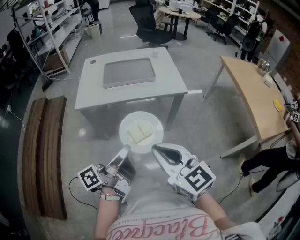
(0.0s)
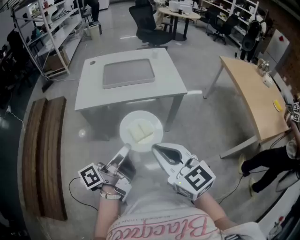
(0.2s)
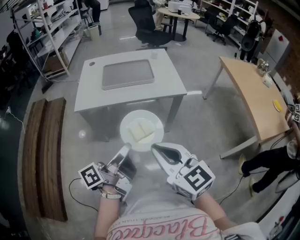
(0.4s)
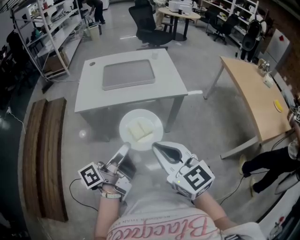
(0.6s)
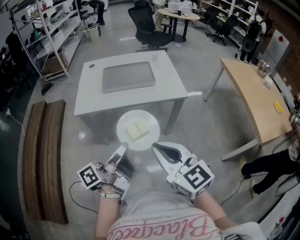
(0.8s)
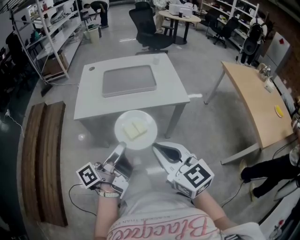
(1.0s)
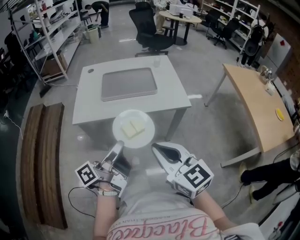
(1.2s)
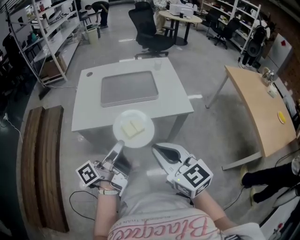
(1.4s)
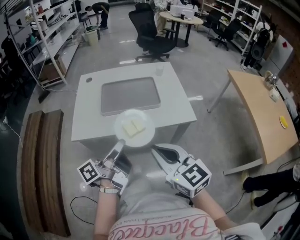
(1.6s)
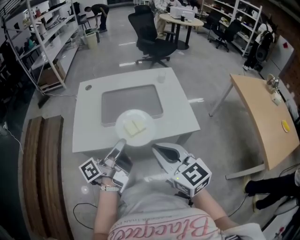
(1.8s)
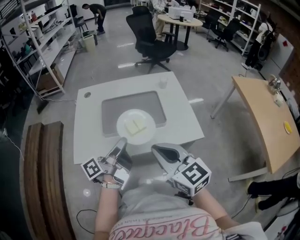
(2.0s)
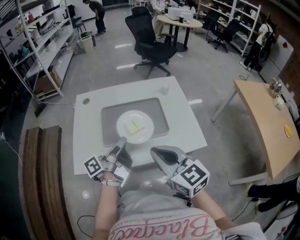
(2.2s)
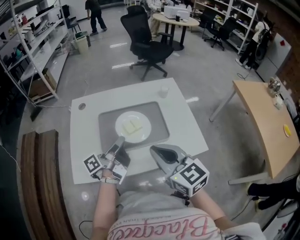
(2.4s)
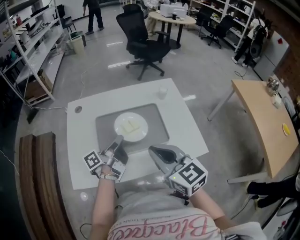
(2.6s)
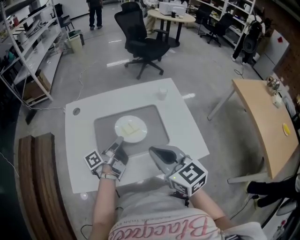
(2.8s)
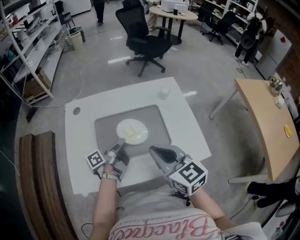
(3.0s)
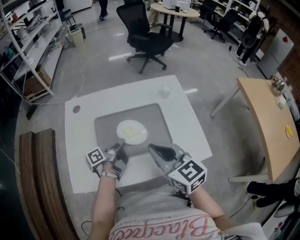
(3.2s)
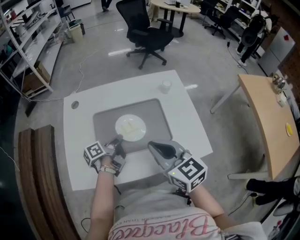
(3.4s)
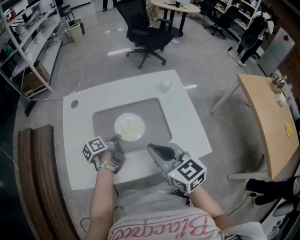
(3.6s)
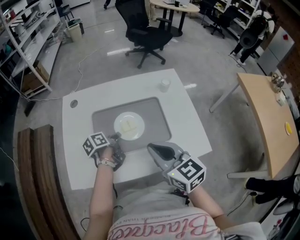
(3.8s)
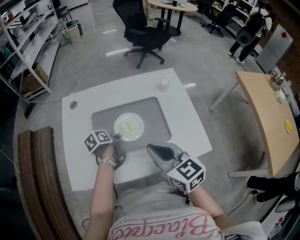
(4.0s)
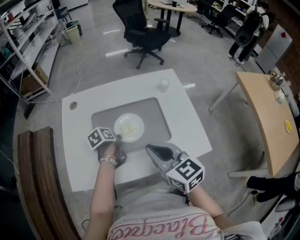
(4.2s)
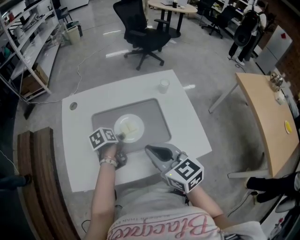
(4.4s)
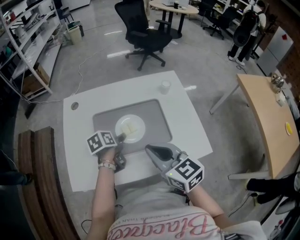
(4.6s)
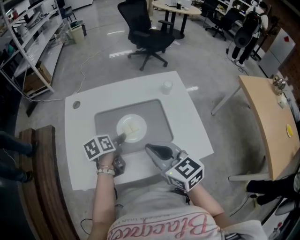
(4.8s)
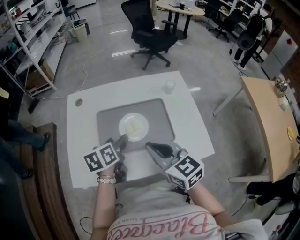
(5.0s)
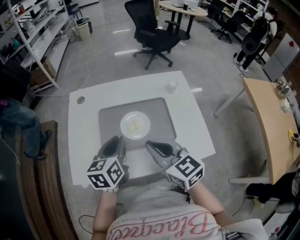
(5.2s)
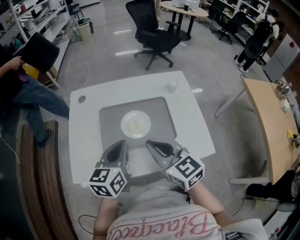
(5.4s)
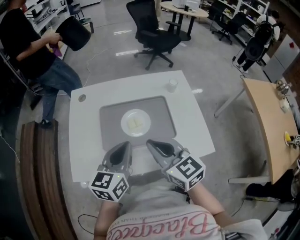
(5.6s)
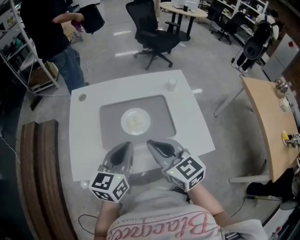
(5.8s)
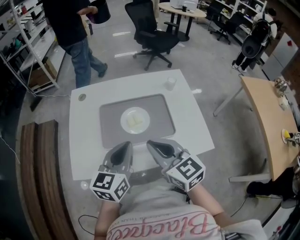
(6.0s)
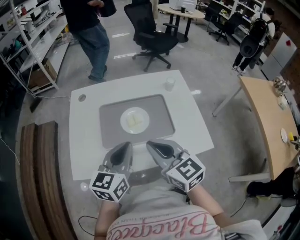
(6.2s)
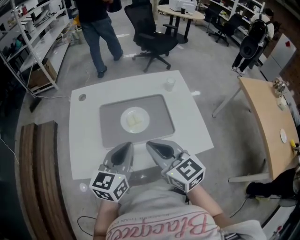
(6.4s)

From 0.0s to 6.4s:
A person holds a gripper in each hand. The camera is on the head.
From 0.0s to 1.6s: The two grippers go roughly 15 cm forward.
From 1.6s to 3.2s: The left gripper is displaced forward and downward by some 30 cm, and changes its angle by approximately 30 degrees; the right gripper moves forward, some 25 cm.
From 3.2s to 4.8s: The left gripper angles its fingers downward, by about 30 degrees, and opens its fingers.
From 4.8s to 6.4s: The left gripper goes some 20 cm upward and backward, tips its fingers upward by about 30 degrees, and closes.

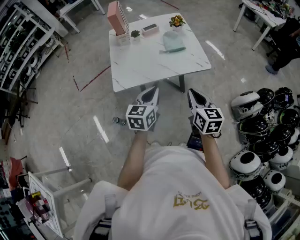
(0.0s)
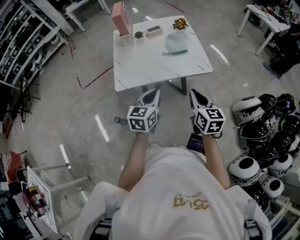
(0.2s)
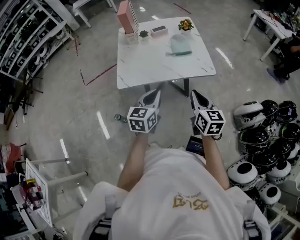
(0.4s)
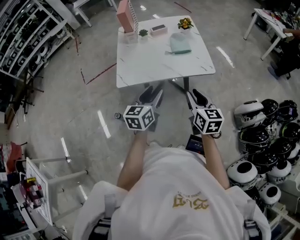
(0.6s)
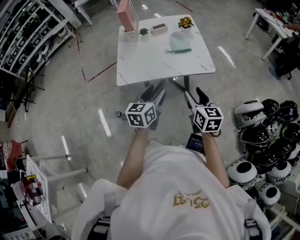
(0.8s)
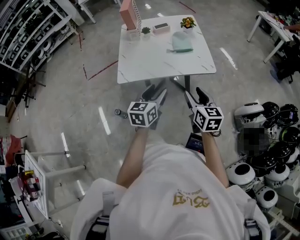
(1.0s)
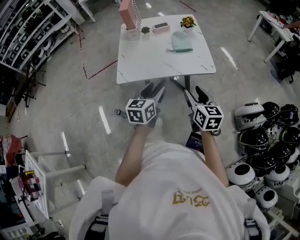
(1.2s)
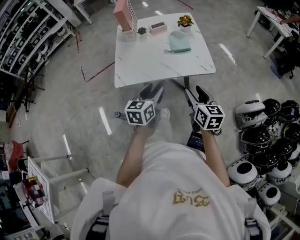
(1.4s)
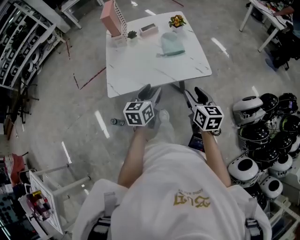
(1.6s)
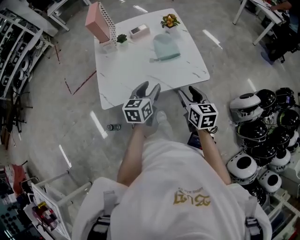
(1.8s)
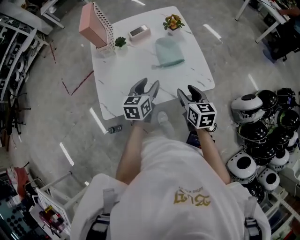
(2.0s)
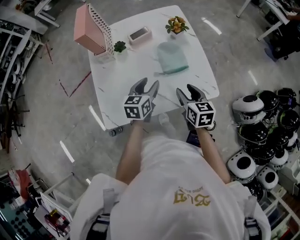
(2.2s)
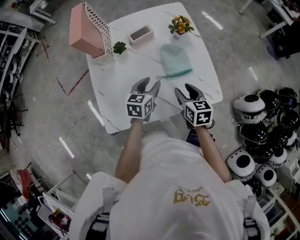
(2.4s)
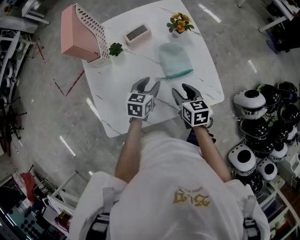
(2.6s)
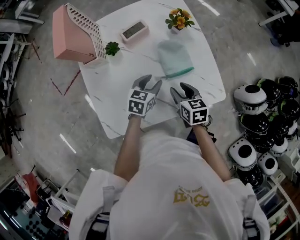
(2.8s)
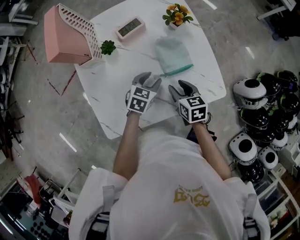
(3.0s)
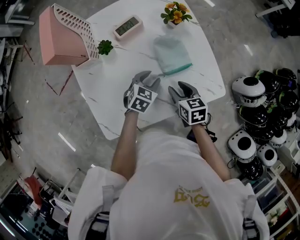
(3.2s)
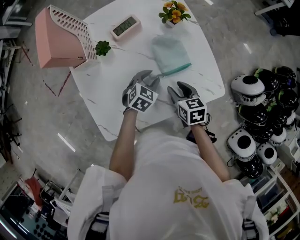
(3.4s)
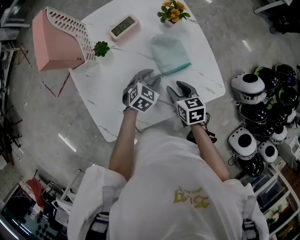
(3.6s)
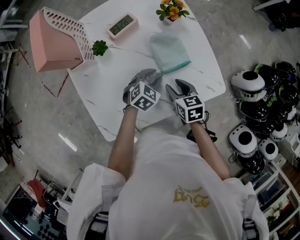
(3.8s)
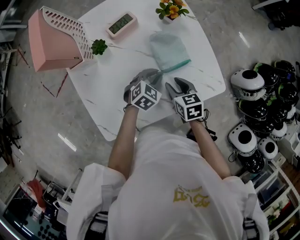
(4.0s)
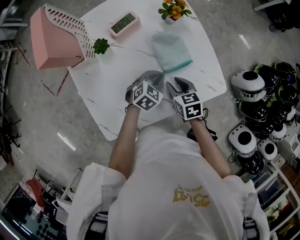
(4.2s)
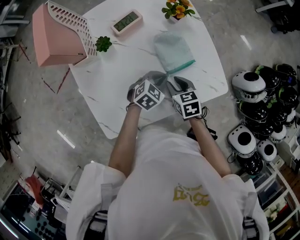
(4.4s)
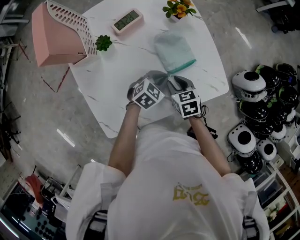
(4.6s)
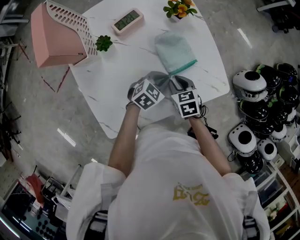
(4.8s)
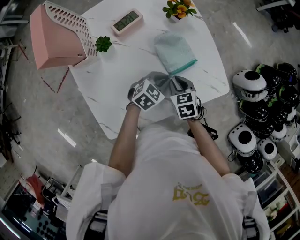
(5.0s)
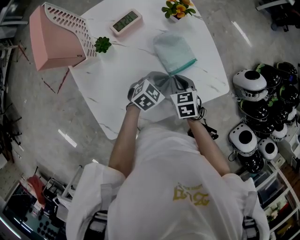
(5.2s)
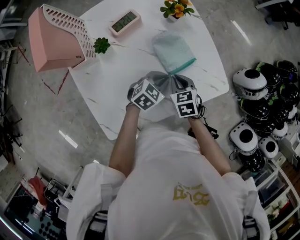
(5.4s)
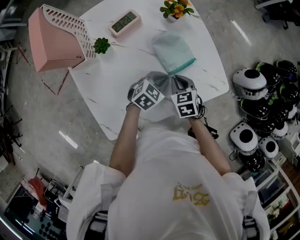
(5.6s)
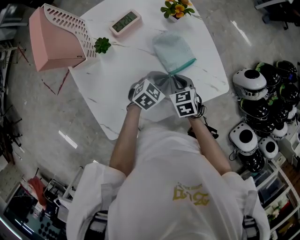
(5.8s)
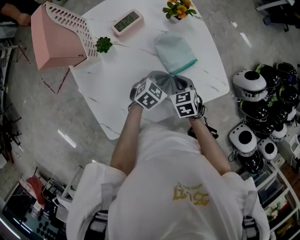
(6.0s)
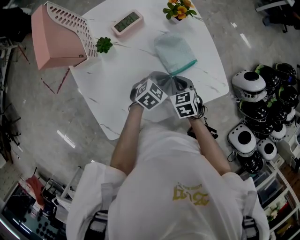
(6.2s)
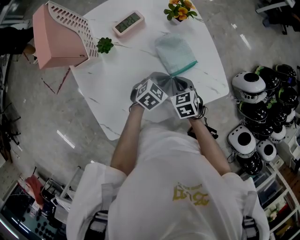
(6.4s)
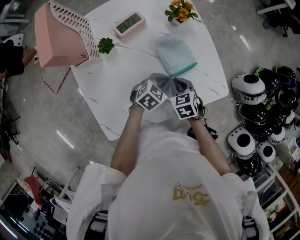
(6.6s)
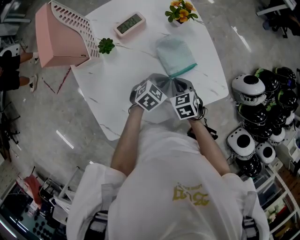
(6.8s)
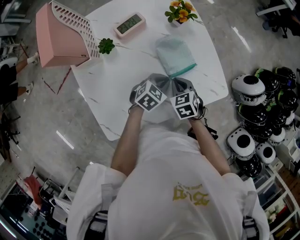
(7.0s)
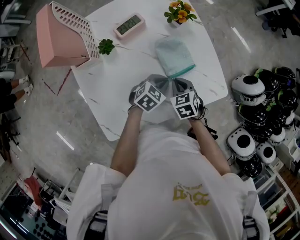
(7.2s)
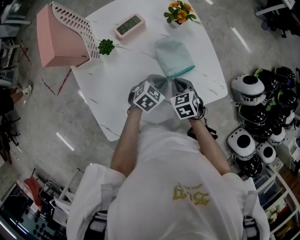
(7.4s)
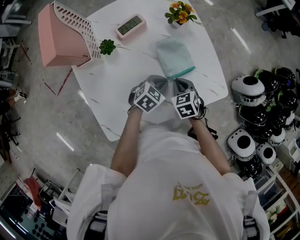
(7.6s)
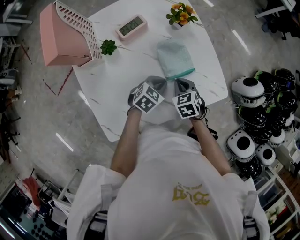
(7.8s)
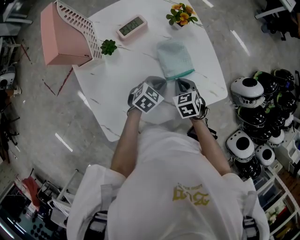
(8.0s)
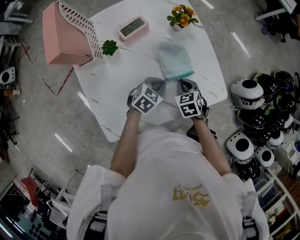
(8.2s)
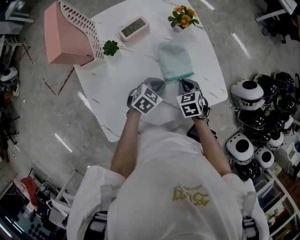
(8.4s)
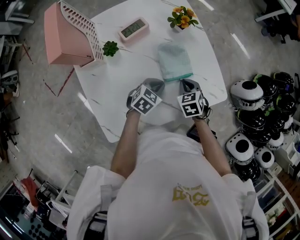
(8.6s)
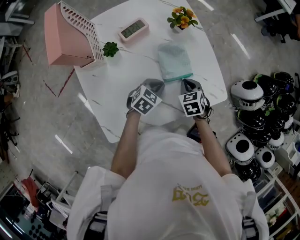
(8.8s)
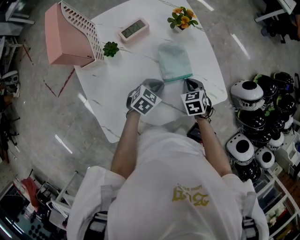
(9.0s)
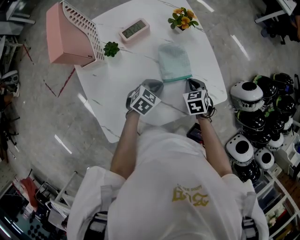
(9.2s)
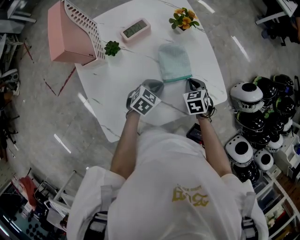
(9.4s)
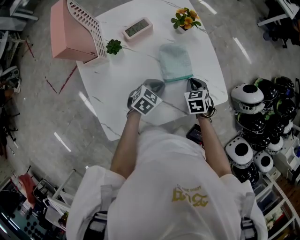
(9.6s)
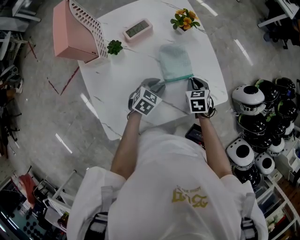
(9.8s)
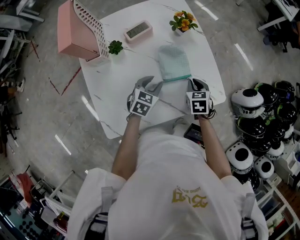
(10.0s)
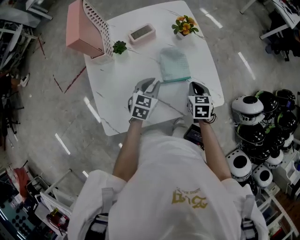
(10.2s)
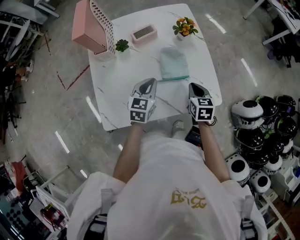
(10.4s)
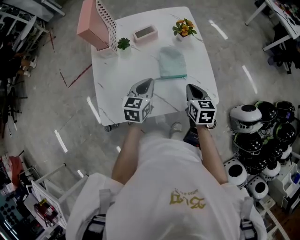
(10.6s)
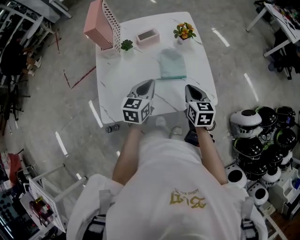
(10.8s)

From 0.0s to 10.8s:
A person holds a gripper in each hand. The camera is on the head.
From 0.0s to 1.6s: Both grippers travel together forward, about 10 cm. The left gripper opens. The right gripper opens.
From 1.6s to 3.0s: Both grippers travel together forward and downward, approximately 35 cm. The right gripper turns by some 20 degrees; the left gripper turns by about 40 degrees.
From 3.0s to 4.6s: The left gripper ends up roughly 5 cm from where it was, rotates roughly 30 degrees, and closes.
From 4.6s to 6.2s: The right gripper closes its fingers.
From 6.2s to 7.8s: The grippers stay close to where they were, moving slightly.
From 7.8s to 9.2s: The right gripper ends up roughly 5 cm from where it was.
From 9.2s to 10.8s: The two grippers go roughly 15 cm upward. The left gripper rotates some 50 degrees, and opens, then closes once more; the right gripper swivels roughly 30 degrees.

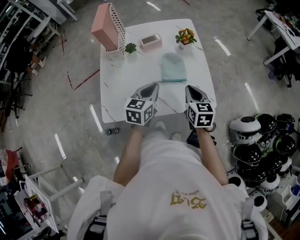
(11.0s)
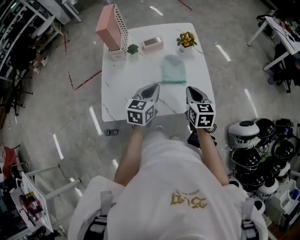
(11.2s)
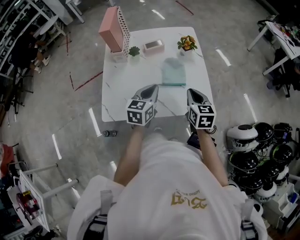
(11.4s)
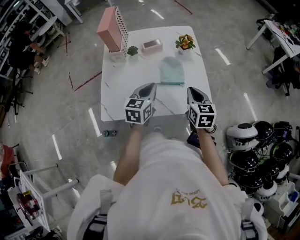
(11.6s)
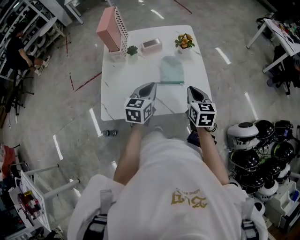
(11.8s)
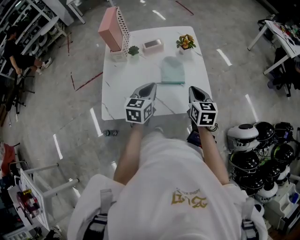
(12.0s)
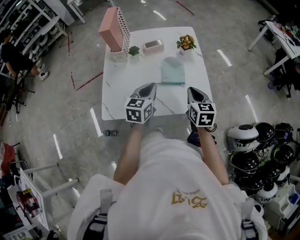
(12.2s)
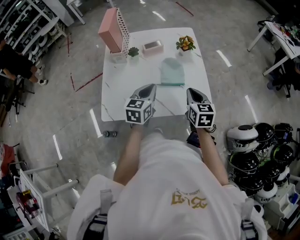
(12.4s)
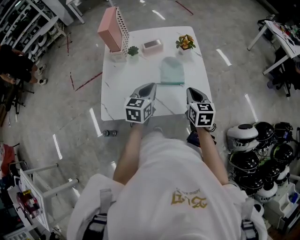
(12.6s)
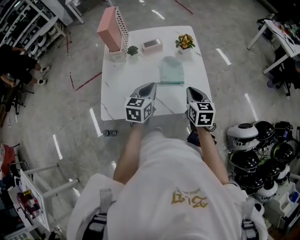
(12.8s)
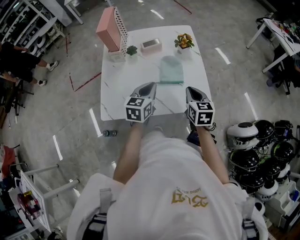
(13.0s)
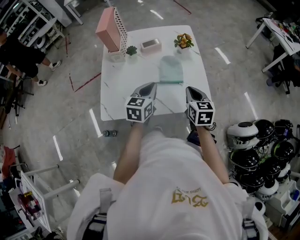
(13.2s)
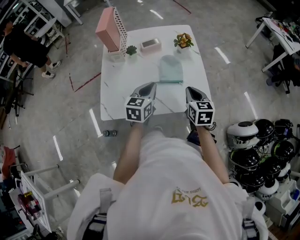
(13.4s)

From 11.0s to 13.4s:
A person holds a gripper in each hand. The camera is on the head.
From 11.0s to 12.2s: The grippers stay close to where they were, moving slightly.
From 12.2s to 13.4s: Neither gripper changes place.

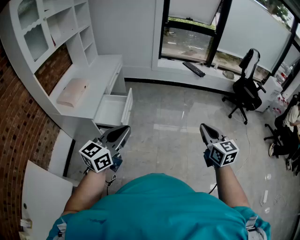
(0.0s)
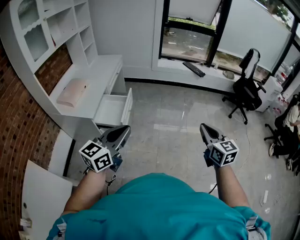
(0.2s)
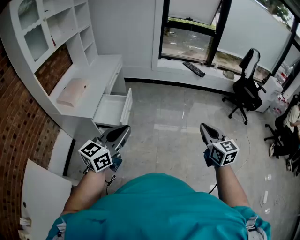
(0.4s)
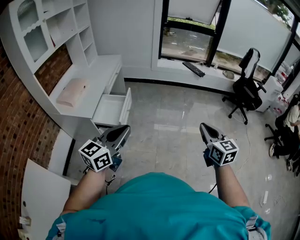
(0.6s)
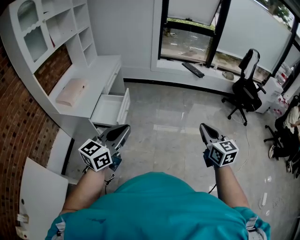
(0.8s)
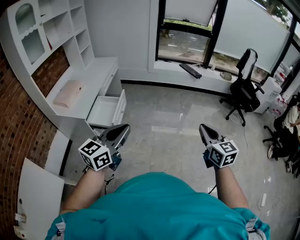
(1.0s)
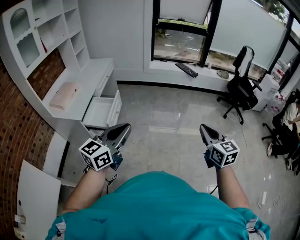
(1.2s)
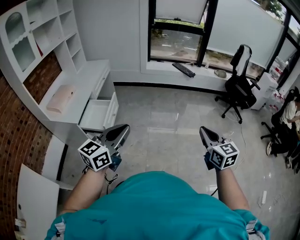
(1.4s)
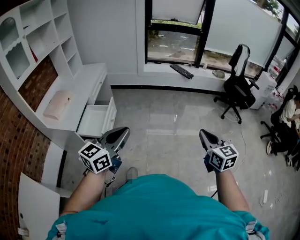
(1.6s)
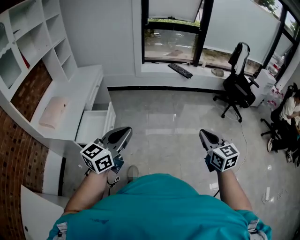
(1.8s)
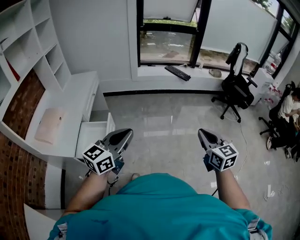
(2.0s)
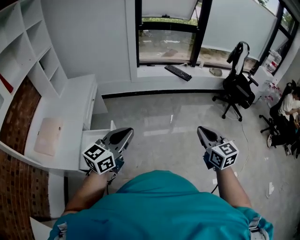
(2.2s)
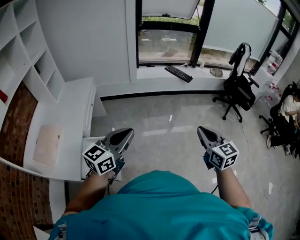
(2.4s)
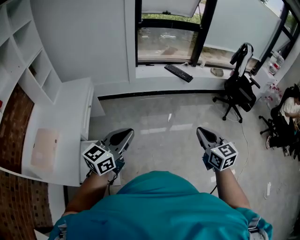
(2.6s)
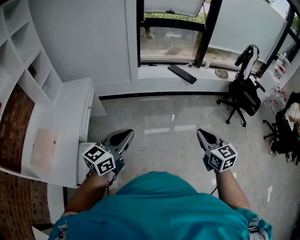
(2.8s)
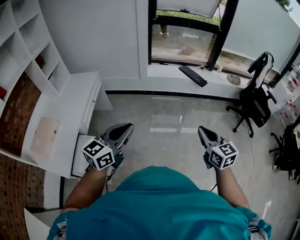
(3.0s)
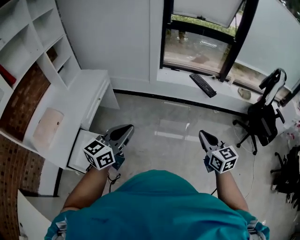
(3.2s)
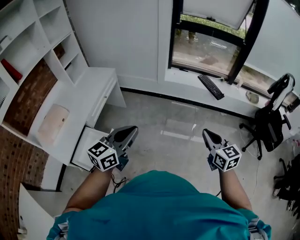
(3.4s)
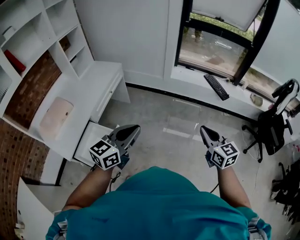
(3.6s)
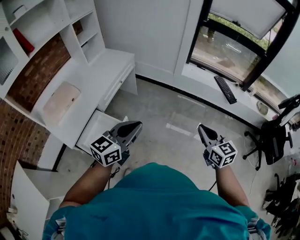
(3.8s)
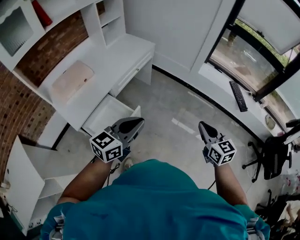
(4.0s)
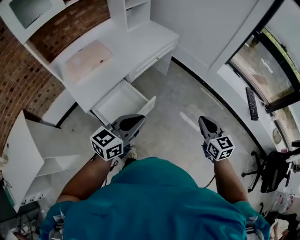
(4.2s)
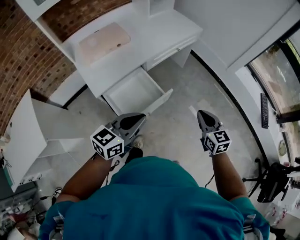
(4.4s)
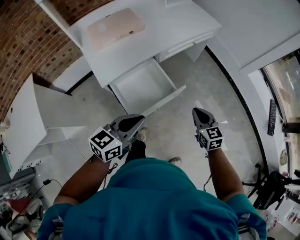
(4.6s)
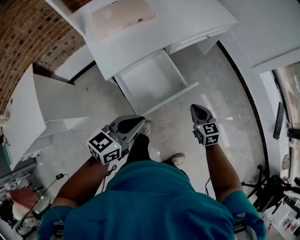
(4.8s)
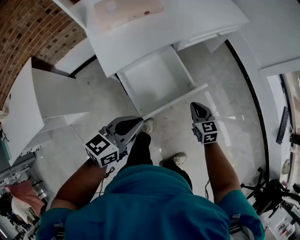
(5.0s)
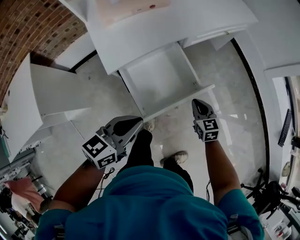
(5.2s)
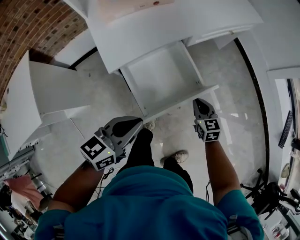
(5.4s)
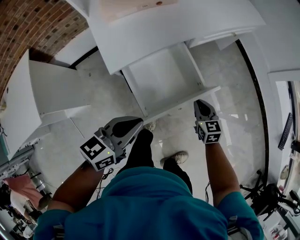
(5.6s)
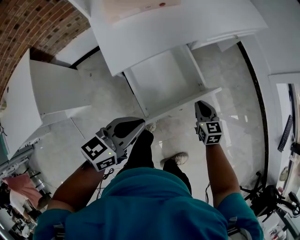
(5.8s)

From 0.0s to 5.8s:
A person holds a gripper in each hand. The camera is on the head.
From 0.0s to 1.4s: Both grippers travel together to the right, roughly 15 cm.
From 1.4s to 2.8s: The pair of grippers is taken forward and to the left, approximately 40 cm.
From 2.8s to 4.4s: The left gripper ends up about 20 cm from where it was, and changes its angle by about 50 degrees, while the right gripper shifts by roughly 35 cm, and rotates some 50 degrees.
From 4.4s to 5.8s: The left gripper heads to the left and downward, covering about 20 cm. The right gripper goes about 30 cm downward and to the left.
